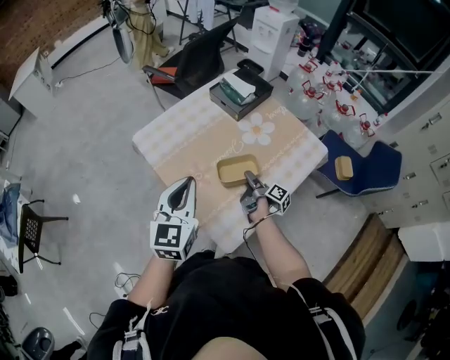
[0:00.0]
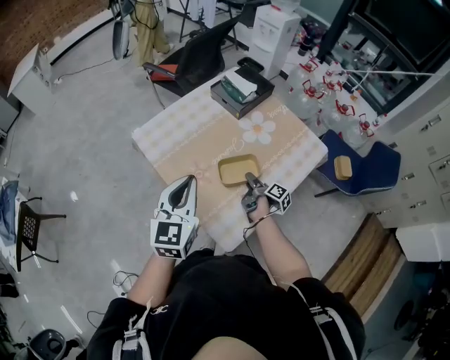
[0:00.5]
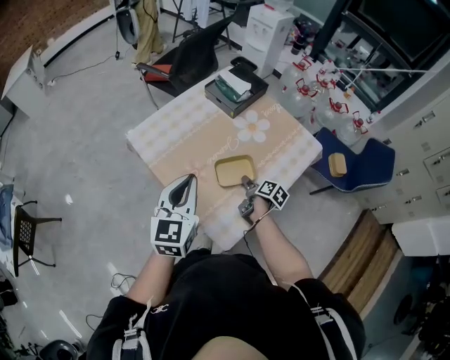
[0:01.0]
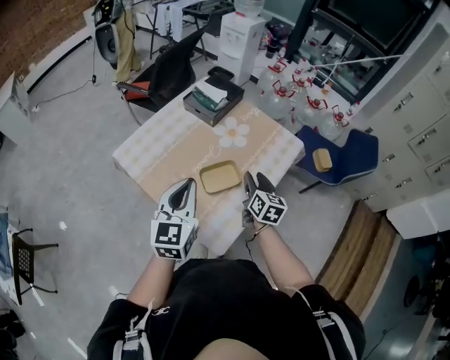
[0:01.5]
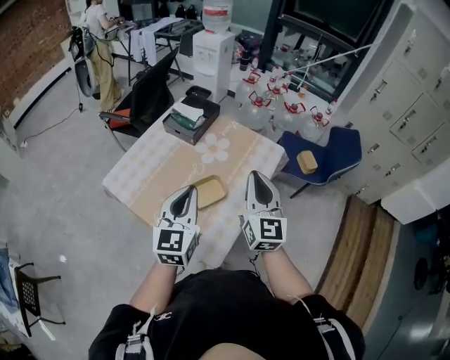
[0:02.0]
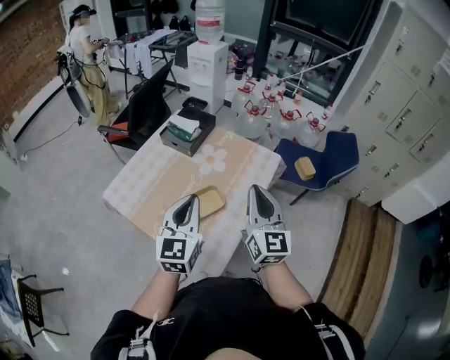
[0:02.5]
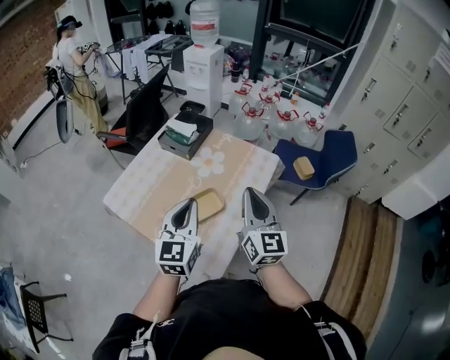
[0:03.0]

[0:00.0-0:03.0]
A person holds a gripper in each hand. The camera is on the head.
0:01.5 to 0:03.0: The left gripper shifts by some 10 cm.

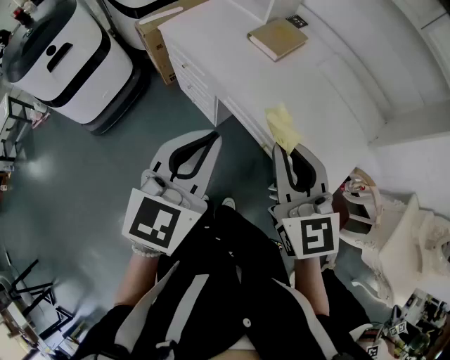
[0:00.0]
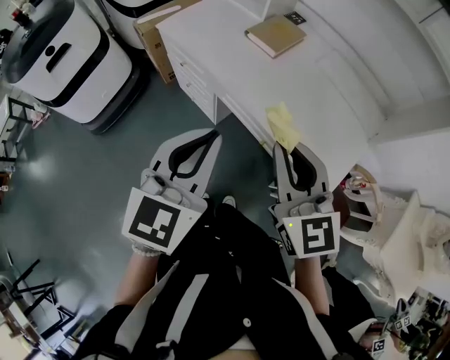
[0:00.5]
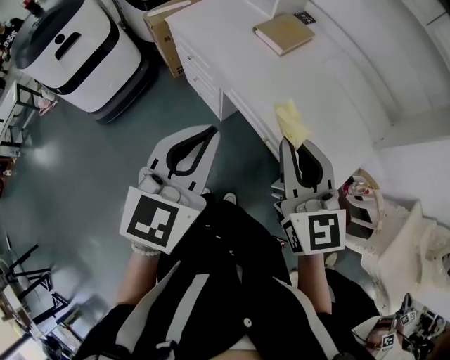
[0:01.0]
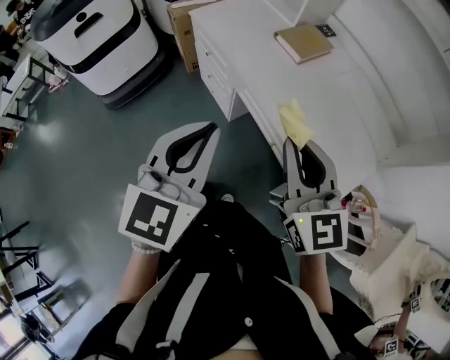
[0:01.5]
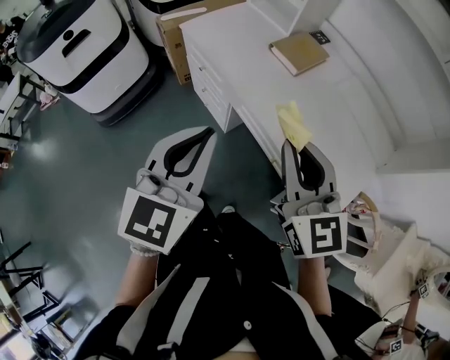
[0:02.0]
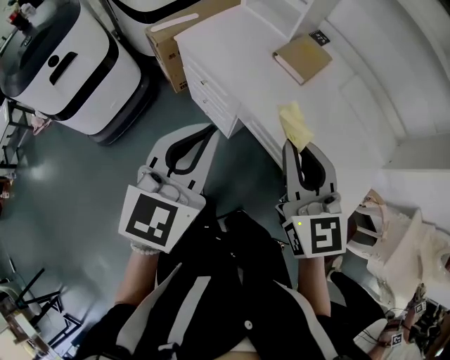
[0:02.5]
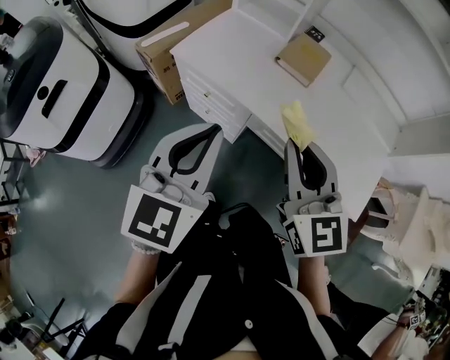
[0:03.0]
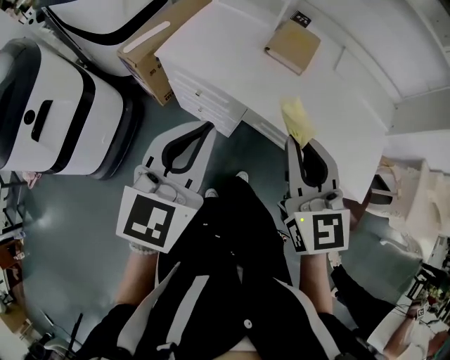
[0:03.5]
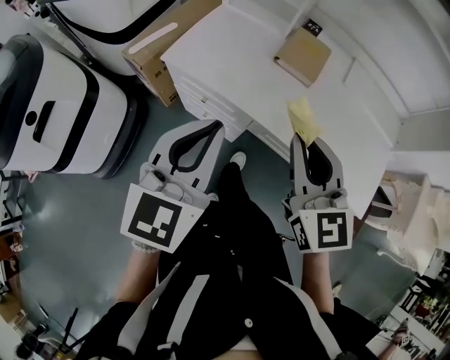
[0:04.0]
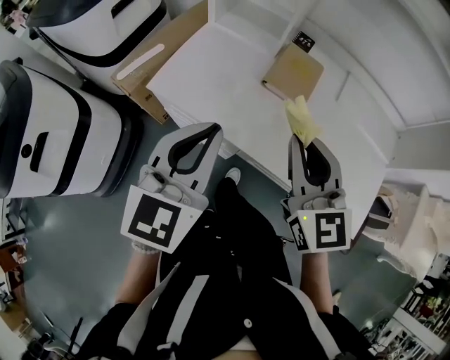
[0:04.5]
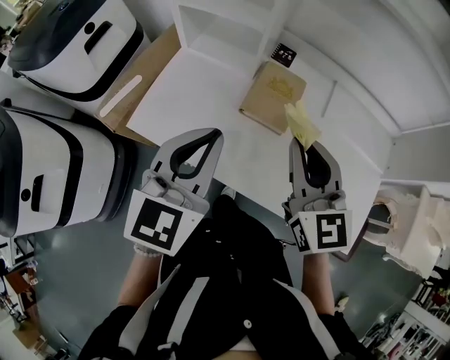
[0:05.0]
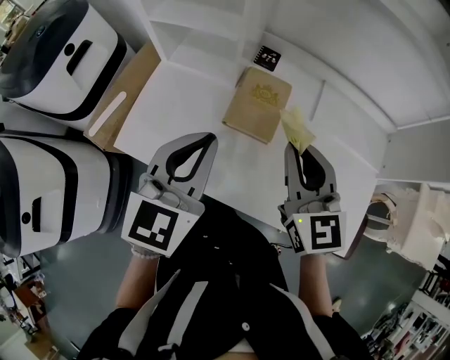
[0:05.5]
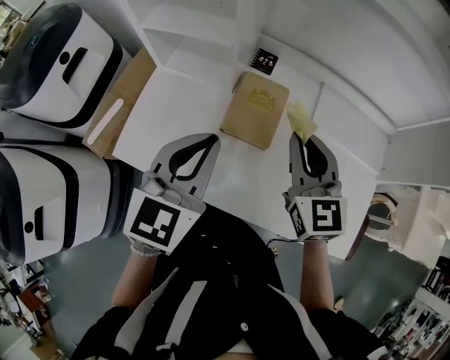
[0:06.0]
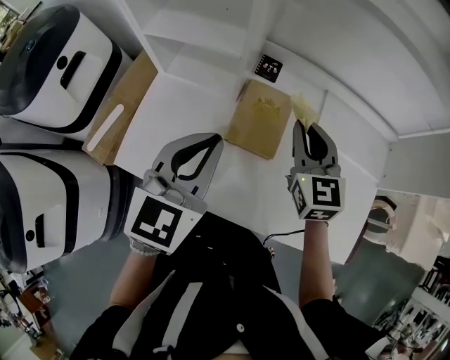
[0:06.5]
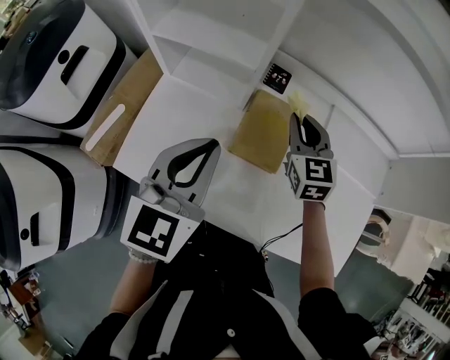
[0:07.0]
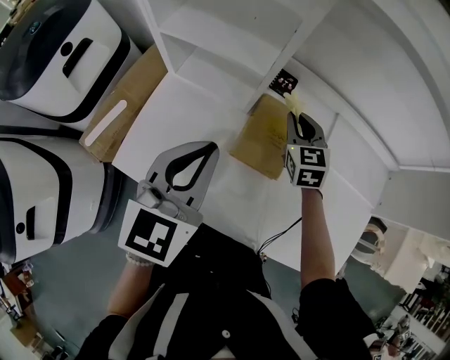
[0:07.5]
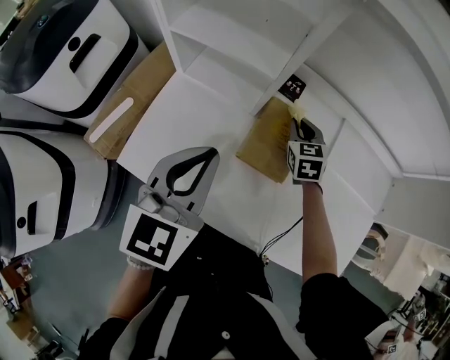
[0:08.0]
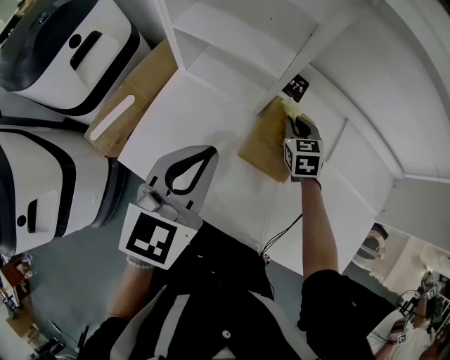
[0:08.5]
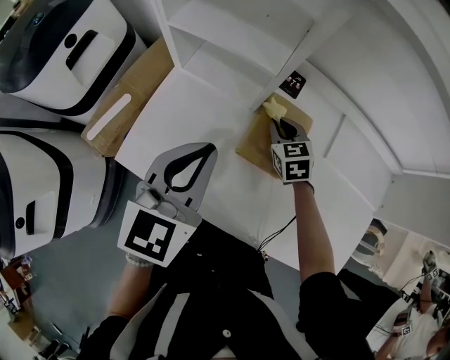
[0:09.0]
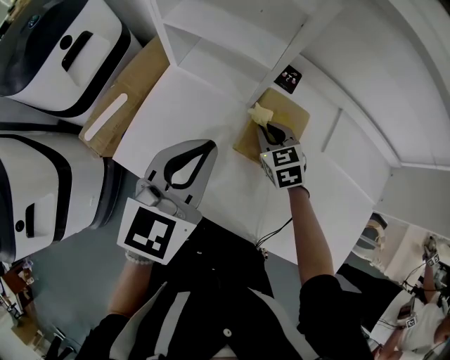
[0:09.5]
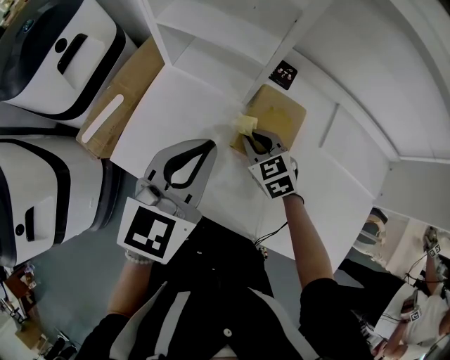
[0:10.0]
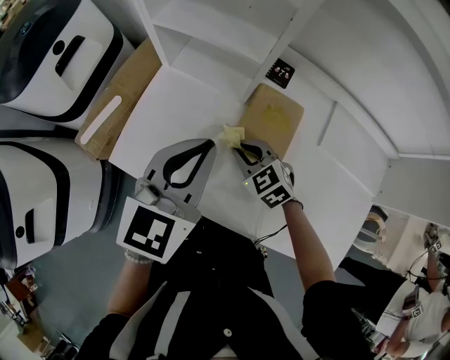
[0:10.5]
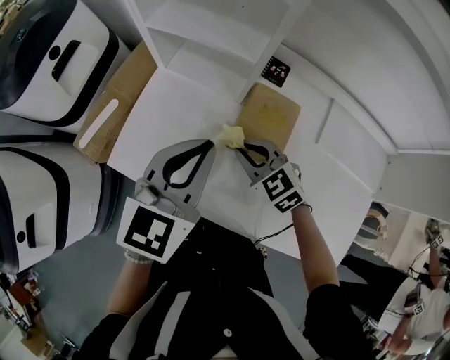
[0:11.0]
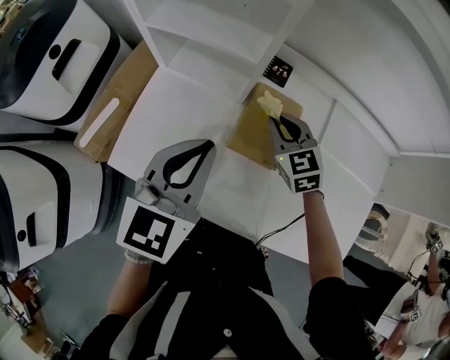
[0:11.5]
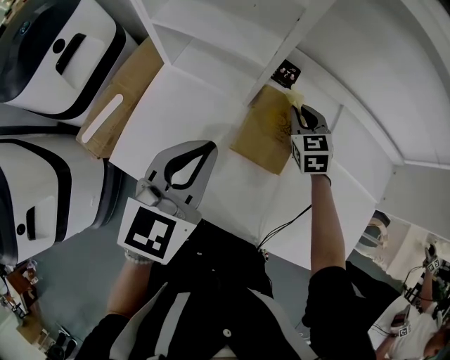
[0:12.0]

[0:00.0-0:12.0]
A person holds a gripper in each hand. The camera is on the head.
0:00.0 to 0:02.0: There are only small adjustments of the grippers.
0:02.0 to 0:04.0: The left gripper shifts approximately 25 cm forward and to the left, and swivels approximately 20 degrees. Meanwhile the right gripper is displaced to the left and forward by some 20 cm, and swivels some 20 degrees.
0:04.0 to 0:06.0: The left gripper goes about 25 cm forward. The right gripper heads forward and to the right, covering about 30 cm.
0:06.0 to 0:08.0: The left gripper shifts some 5 cm to the left, while the right gripper goes about 25 cm downward and forward, and changes its angle by approximately 20 degrees.
0:08.0 to 0:10.0: The right gripper travels to the left and backward by roughly 15 cm, and changes its angle by some 30 degrees.
0:10.0 to 0:12.0: The right gripper is displaced to the right and forward by approximately 15 cm.

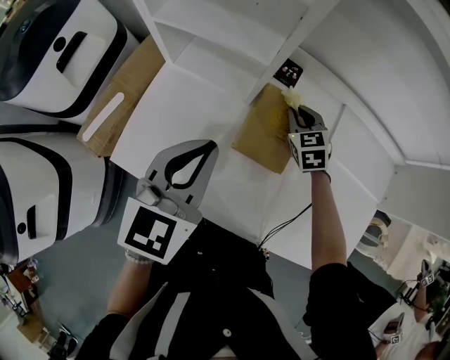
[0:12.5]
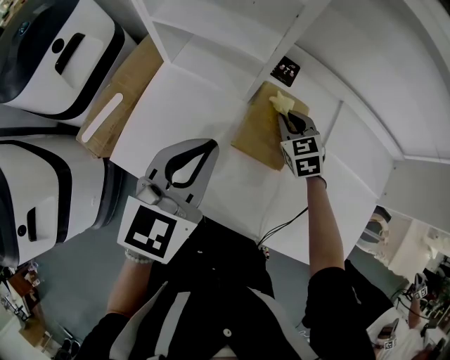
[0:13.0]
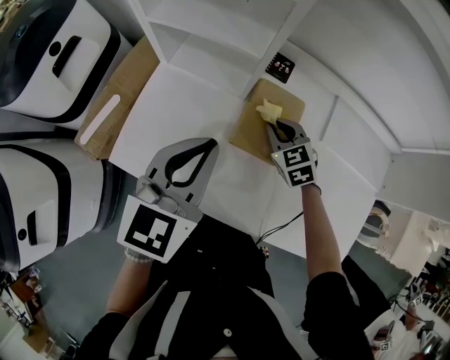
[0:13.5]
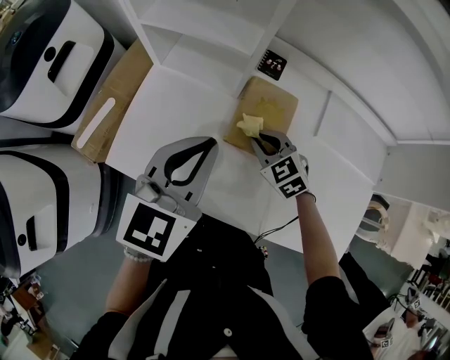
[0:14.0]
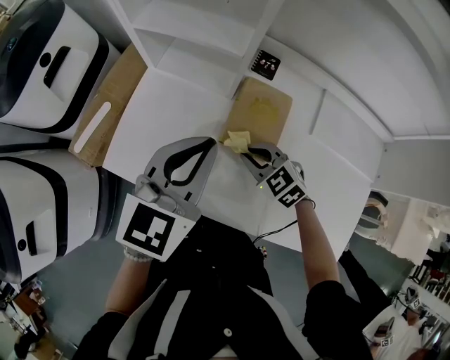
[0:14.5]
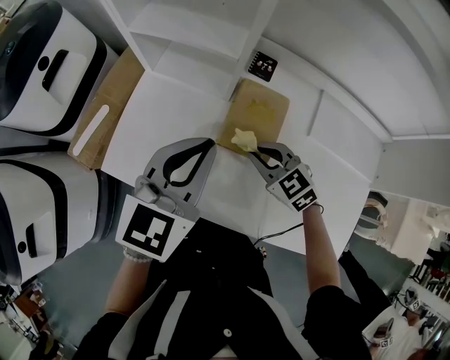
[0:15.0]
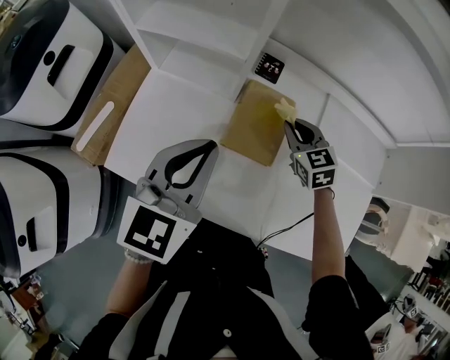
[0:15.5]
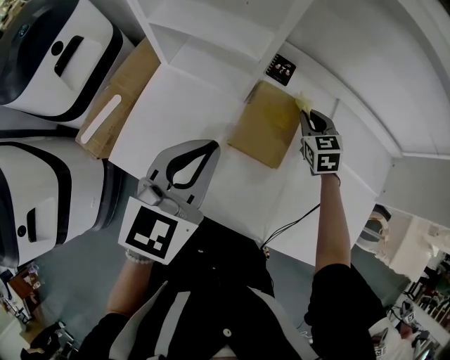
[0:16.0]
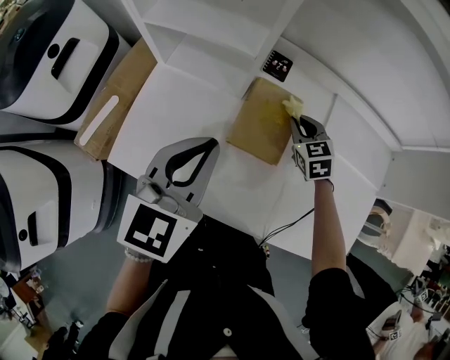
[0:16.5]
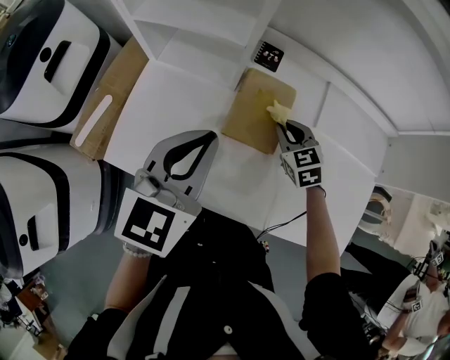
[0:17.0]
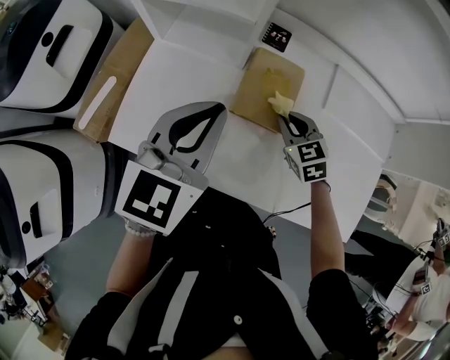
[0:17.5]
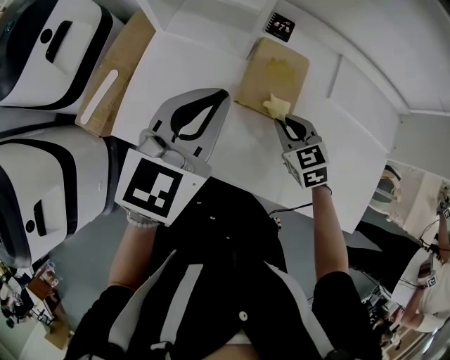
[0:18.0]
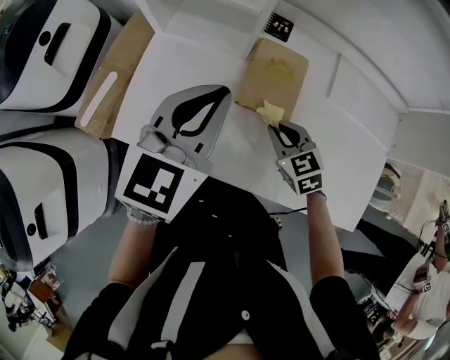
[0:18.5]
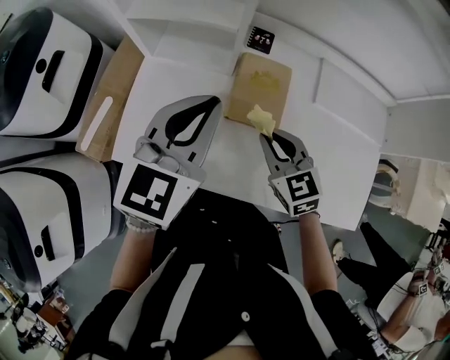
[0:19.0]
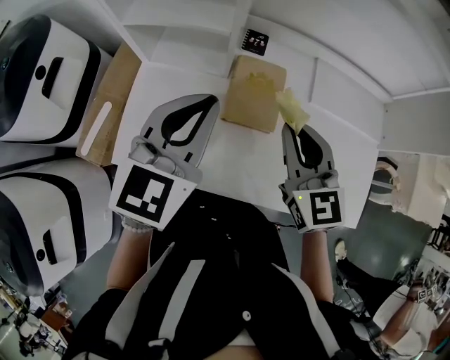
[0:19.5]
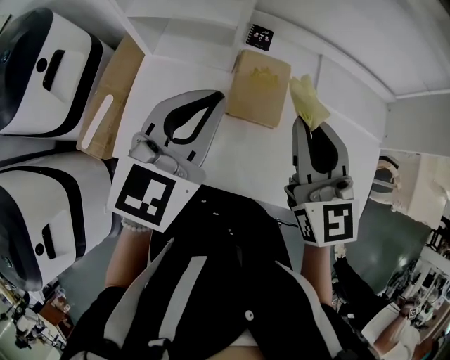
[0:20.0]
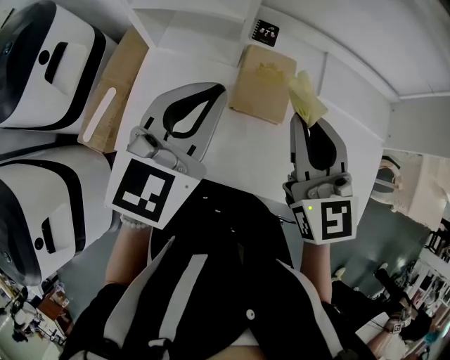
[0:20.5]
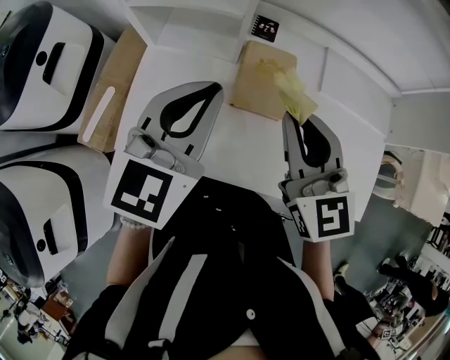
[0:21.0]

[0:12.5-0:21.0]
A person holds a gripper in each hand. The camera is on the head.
0:12.5 to 0:14.5: The right gripper moves backward and to the left, approximately 20 cm, and rotates approximately 30 degrees.
0:14.5 to 0:16.5: The right gripper heads forward and to the right, covering approximately 15 cm, and rotates approximately 30 degrees.
0:16.5 to 0:19.0: The right gripper goes some 20 cm backward, upward and to the left.
0:19.0 to 0:21.0: The right gripper heads upward, covering approximately 15 cm, and changes its angle by some 20 degrees.

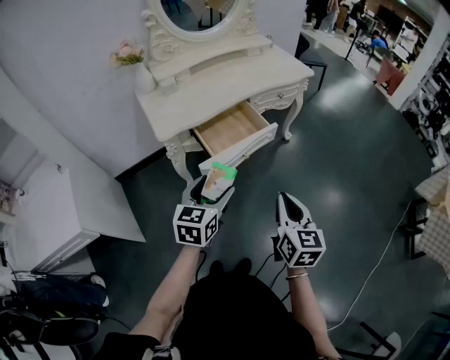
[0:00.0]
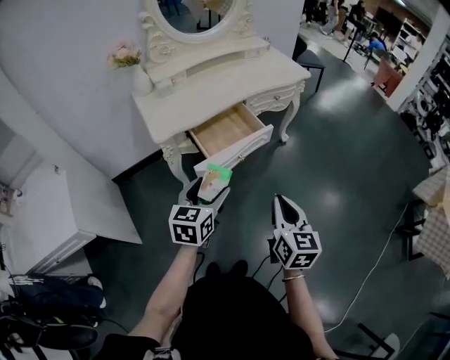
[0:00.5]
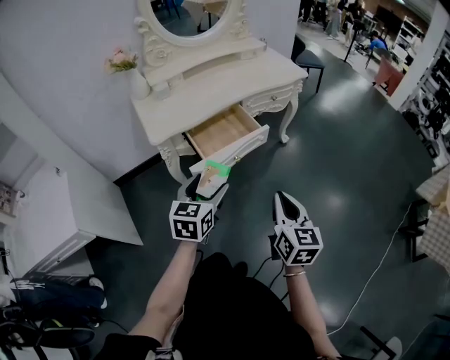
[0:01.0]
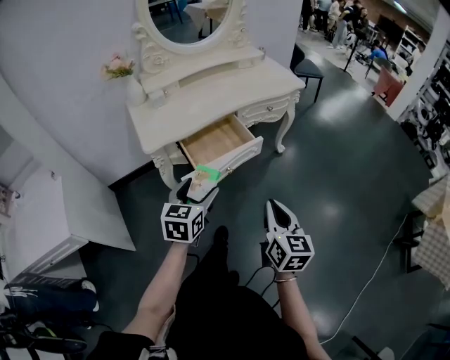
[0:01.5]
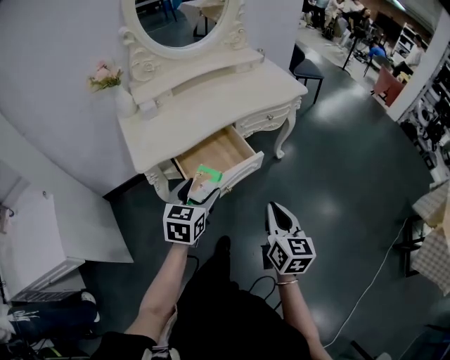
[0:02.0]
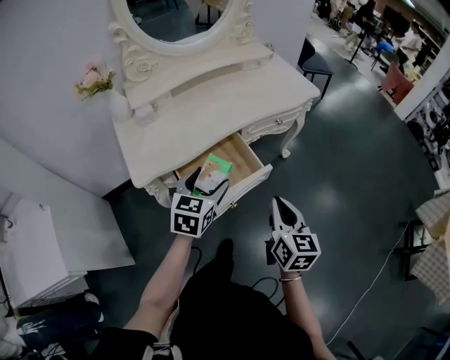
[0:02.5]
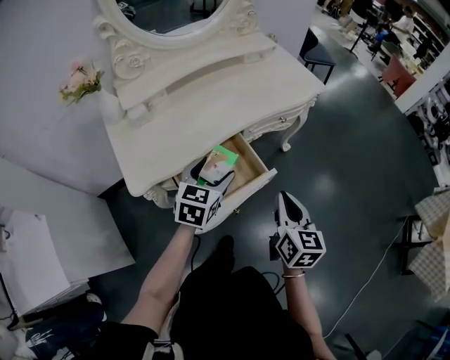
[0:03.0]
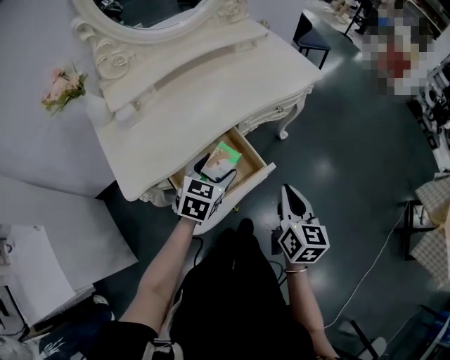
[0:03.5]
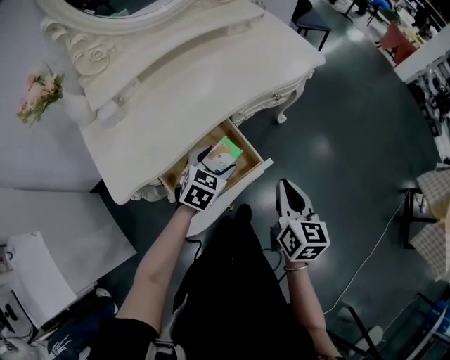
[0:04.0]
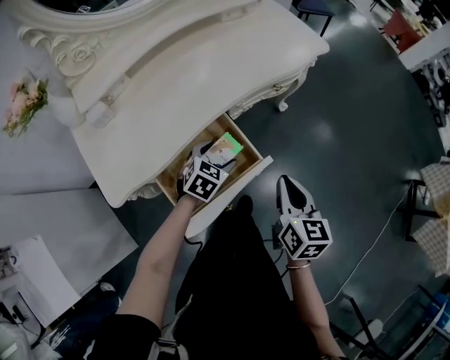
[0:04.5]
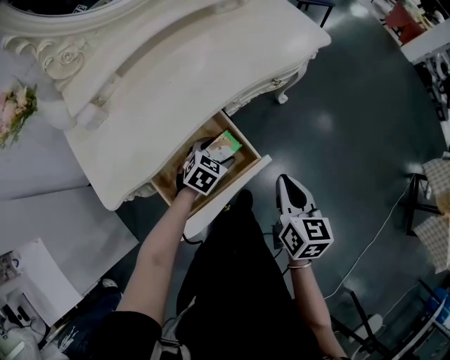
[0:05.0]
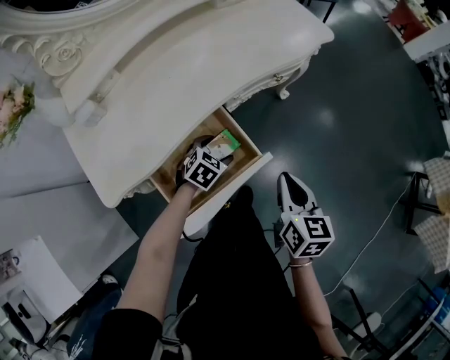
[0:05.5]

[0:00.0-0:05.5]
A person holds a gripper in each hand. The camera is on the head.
0:00.0 to 0:02.0: The two grippers go some 15 cm forward.
0:02.0 to 0:03.5: Both grippers travel together forward, some 20 cm.
0:03.5 to 0:05.5: The right gripper goes roughly 10 cm downward and forward. Meanwhile the left gripper travels downward by some 20 cm, and swivels some 30 degrees.
